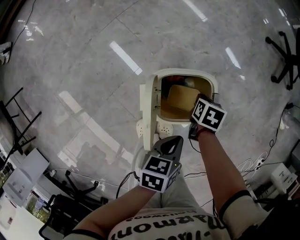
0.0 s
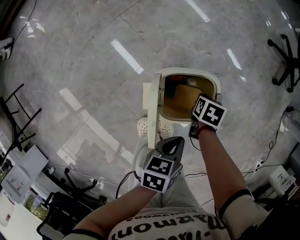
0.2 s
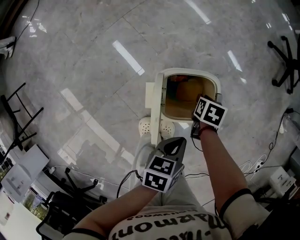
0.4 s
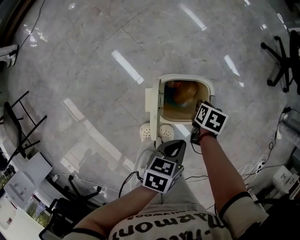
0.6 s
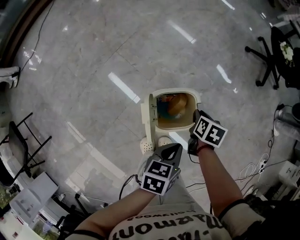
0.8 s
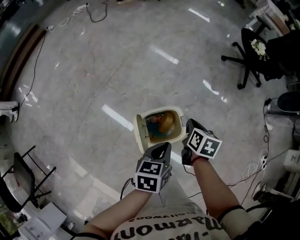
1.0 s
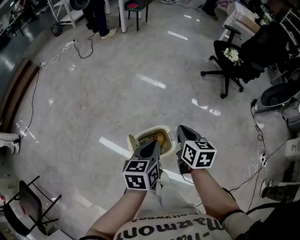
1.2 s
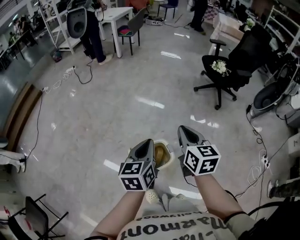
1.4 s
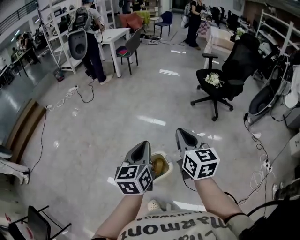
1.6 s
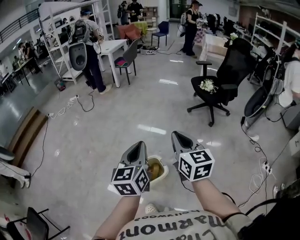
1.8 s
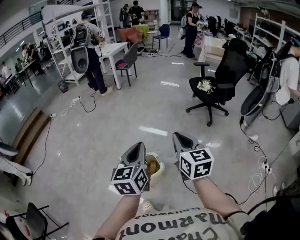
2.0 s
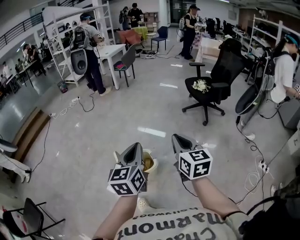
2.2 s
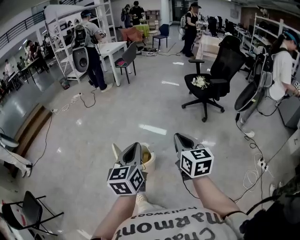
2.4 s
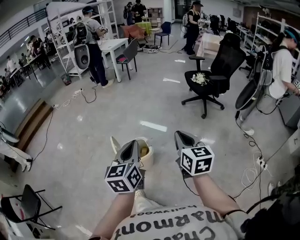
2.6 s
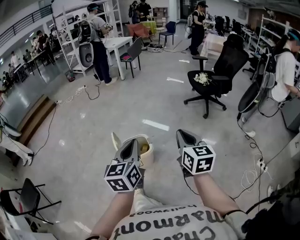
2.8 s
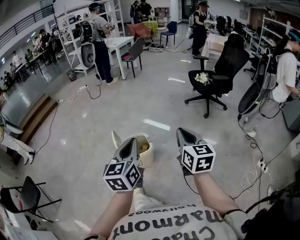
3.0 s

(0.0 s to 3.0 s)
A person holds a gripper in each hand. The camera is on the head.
0.0 s - 1.6 s: Both grippers travel together upward, some 50 cm. The left gripper tilts its fingers roughly 30 degrees upward; the right gripper tilts its fingers approximately 60 degrees upward.
1.6 s - 3.0 s: The grippers both shift backward and to the right by about 30 cm.

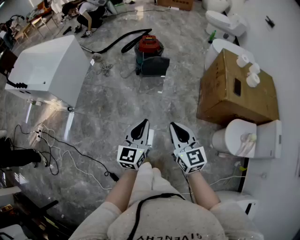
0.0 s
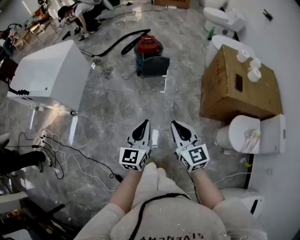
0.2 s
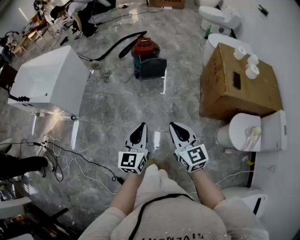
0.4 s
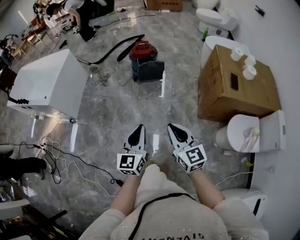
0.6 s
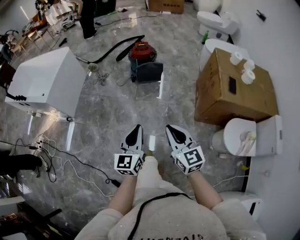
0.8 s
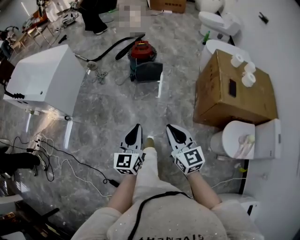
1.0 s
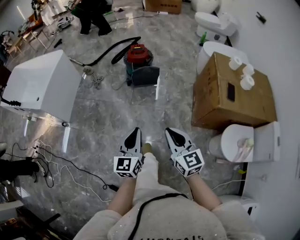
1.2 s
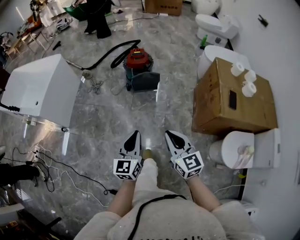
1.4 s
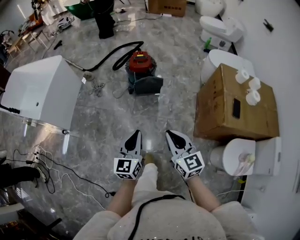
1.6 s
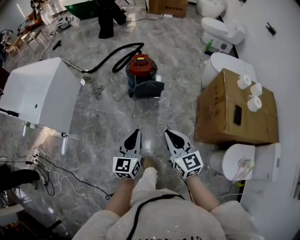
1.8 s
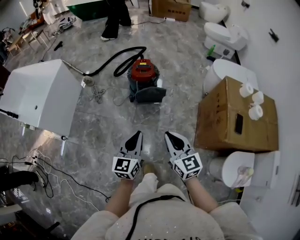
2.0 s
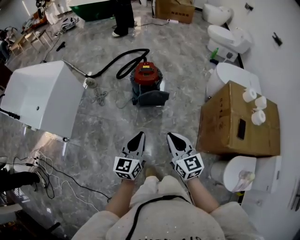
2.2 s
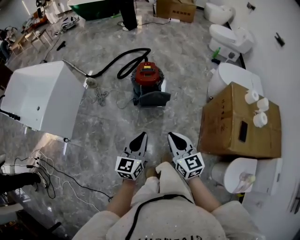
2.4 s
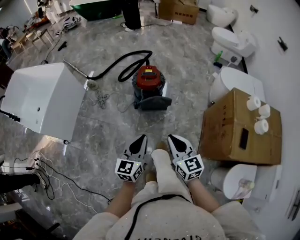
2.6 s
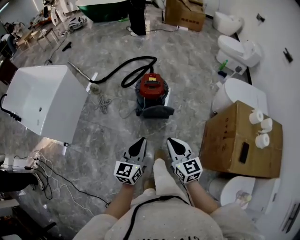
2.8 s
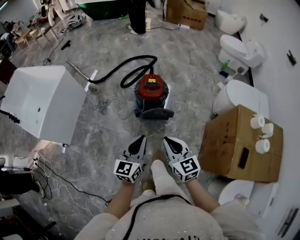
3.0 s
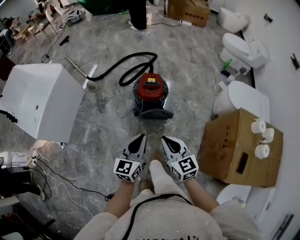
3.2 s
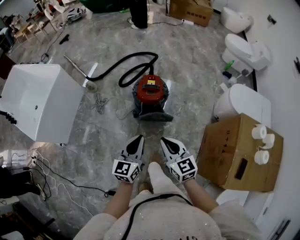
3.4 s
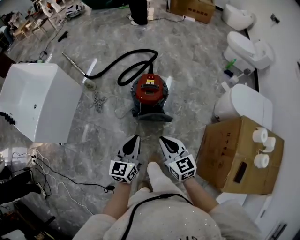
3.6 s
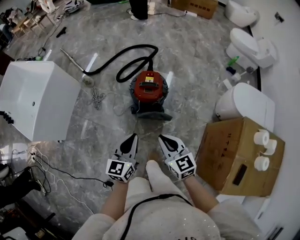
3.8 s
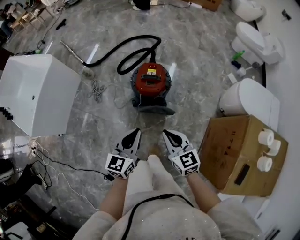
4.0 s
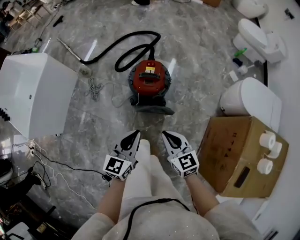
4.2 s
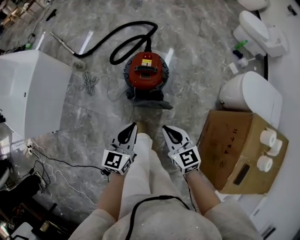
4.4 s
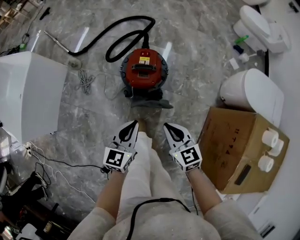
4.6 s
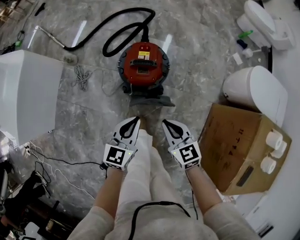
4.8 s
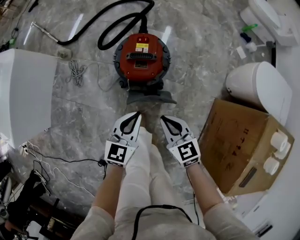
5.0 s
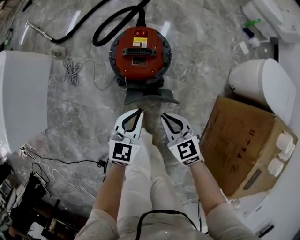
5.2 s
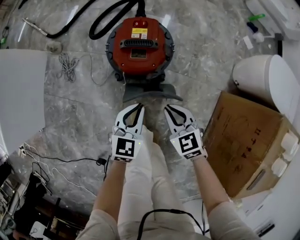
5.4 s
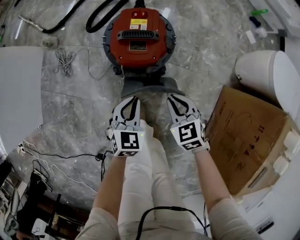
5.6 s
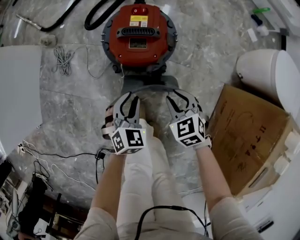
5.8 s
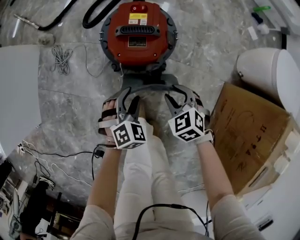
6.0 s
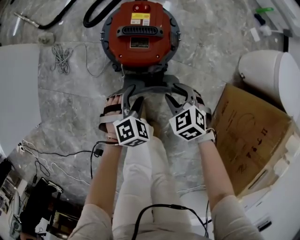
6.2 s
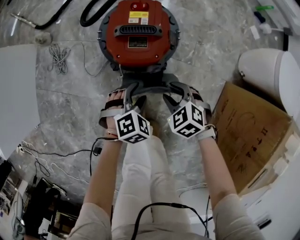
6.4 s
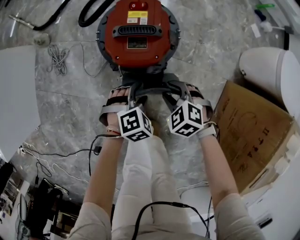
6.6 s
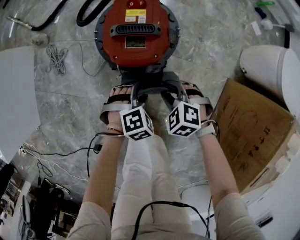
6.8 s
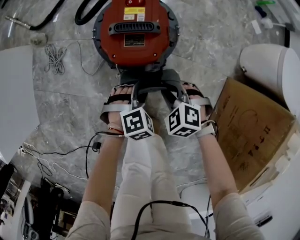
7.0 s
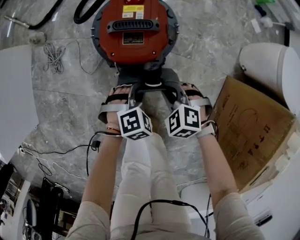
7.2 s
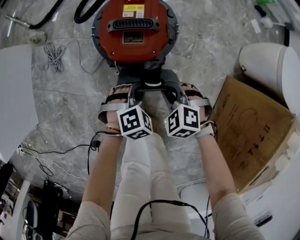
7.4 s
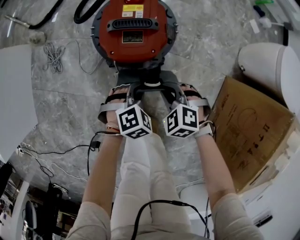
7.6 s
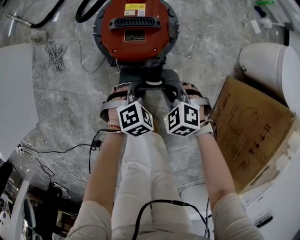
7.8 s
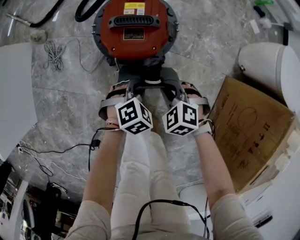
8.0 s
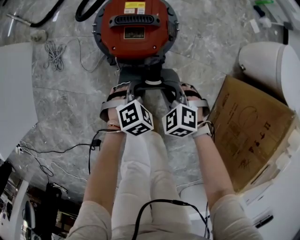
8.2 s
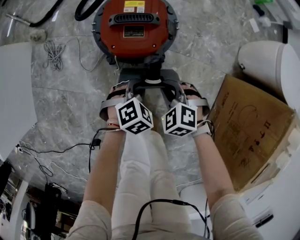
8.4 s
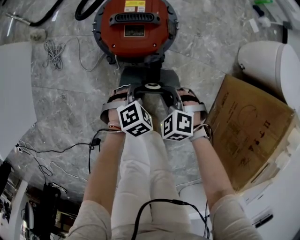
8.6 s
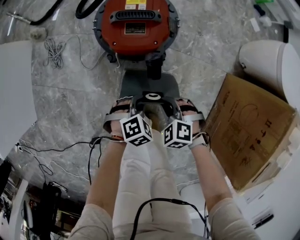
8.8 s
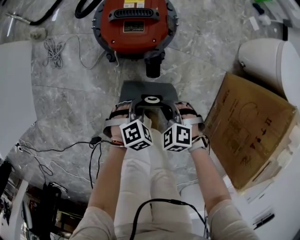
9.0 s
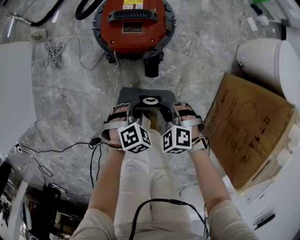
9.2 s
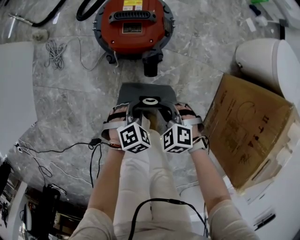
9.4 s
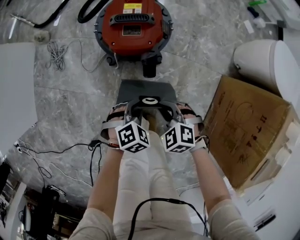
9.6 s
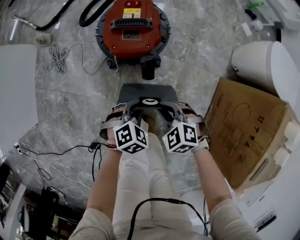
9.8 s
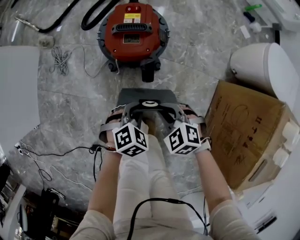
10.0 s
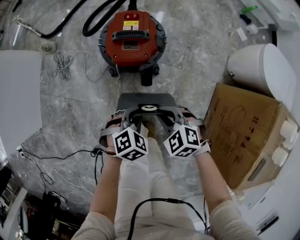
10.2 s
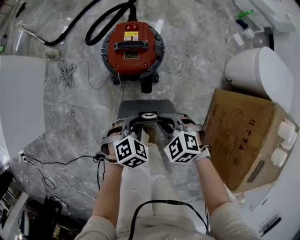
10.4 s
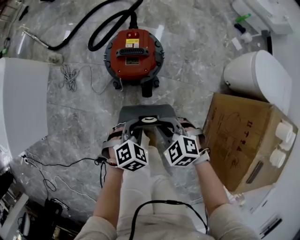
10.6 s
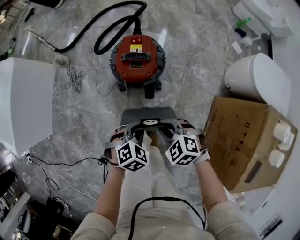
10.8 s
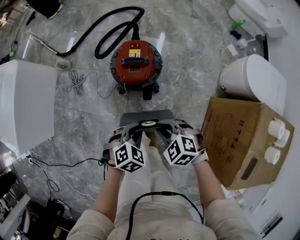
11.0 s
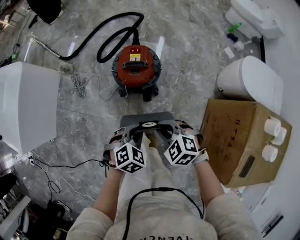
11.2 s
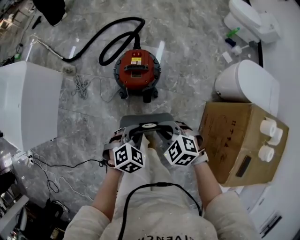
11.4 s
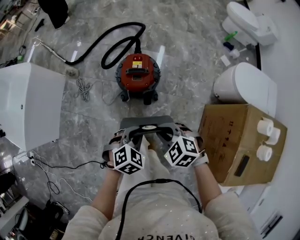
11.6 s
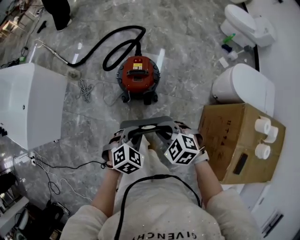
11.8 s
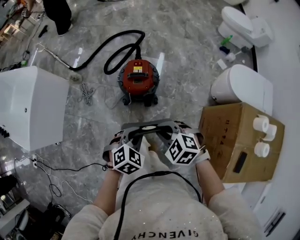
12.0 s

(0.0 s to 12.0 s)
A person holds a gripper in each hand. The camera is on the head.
0.0 s - 1.6 s: The two grippers go approximately 15 cm forward.
1.6 s - 3.0 s: Both grippers move forward, some 25 cm.
3.0 s - 4.4 s: The left gripper is displaced forward and downward by about 20 cm; the right gripper is displaced forward, downward and to the right by some 20 cm.
4.4 s - 6.0 s: Both grippers travel together downward, about 30 cm. The left gripper tips its fingers downward by some 40 degrees, and opens, while the right gripper angles its fingers downward, by some 30 degrees, and opens its fingers.
6.0 s - 7.6 s: The left gripper travels downward by some 5 cm, and closes up; the right gripper closes up.
7.6 s - 9.0 s: The grippers both shift backward by roughly 10 cm.
9.0 s - 10.4 s: The grippers both shift upward by about 15 cm.
10.4 s - 12.0 s: Both grippers travel together upward, some 25 cm.

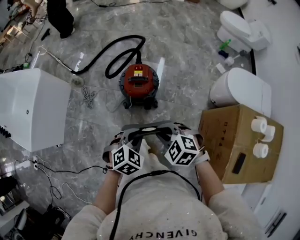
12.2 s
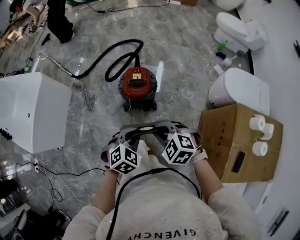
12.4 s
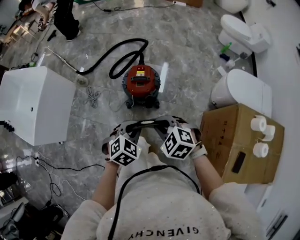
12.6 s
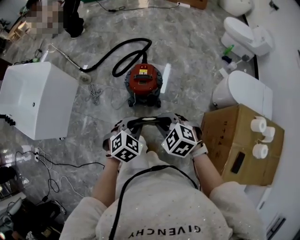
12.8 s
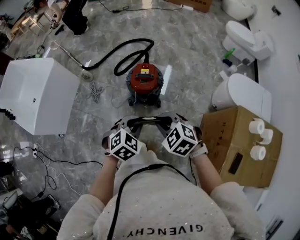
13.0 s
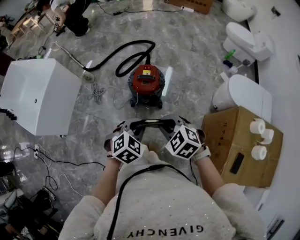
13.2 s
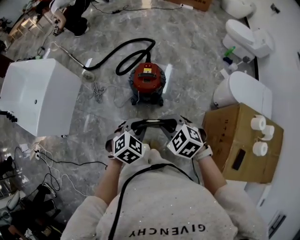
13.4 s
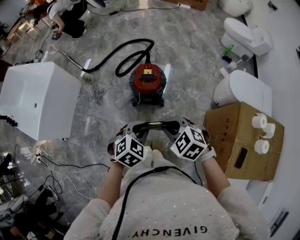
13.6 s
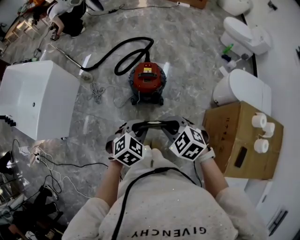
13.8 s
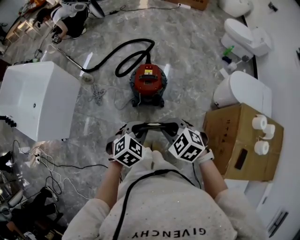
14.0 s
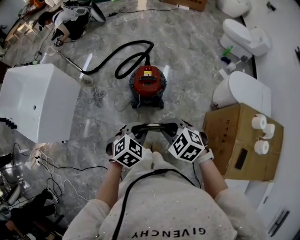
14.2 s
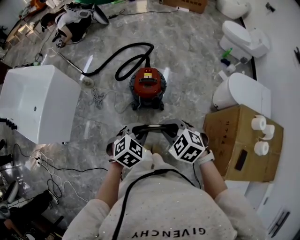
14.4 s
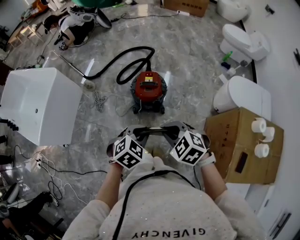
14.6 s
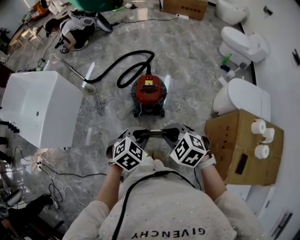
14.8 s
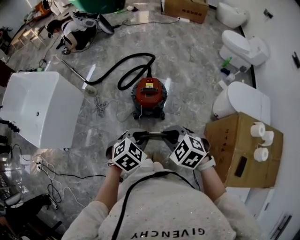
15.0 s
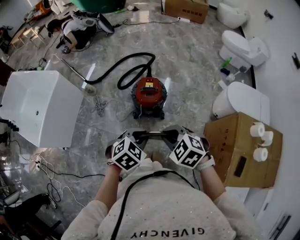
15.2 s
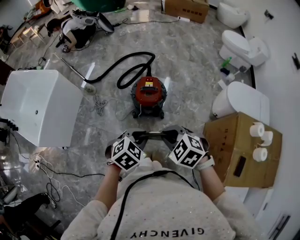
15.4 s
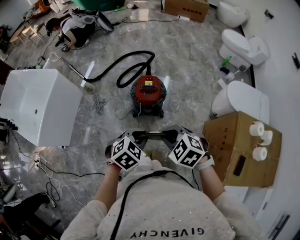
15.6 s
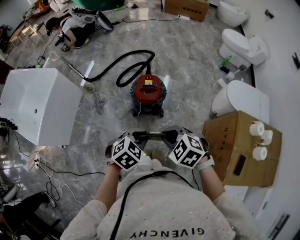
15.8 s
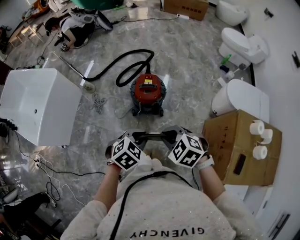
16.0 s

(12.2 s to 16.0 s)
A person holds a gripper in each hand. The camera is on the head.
12.2 s - 13.4 s: The two grippers go roughly 5 cm upward.
13.4 s - 16.0 s: The grippers move only a little.

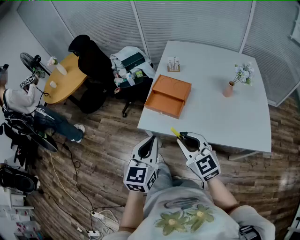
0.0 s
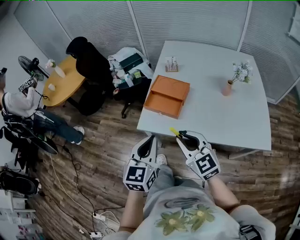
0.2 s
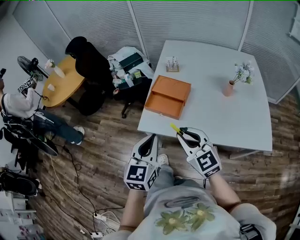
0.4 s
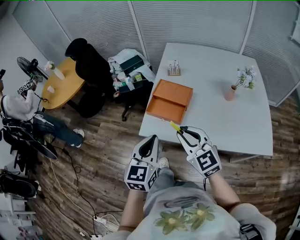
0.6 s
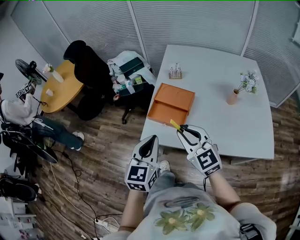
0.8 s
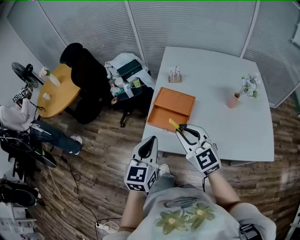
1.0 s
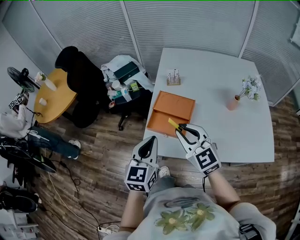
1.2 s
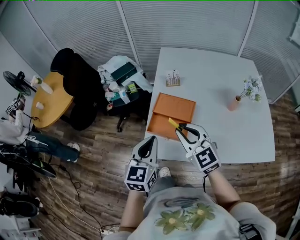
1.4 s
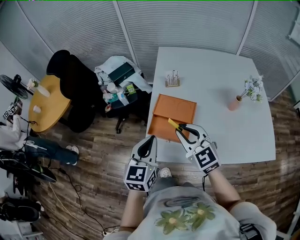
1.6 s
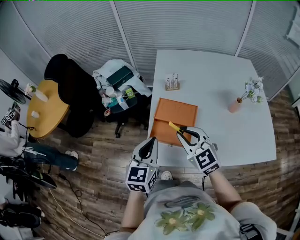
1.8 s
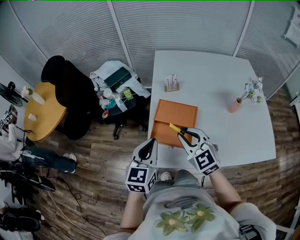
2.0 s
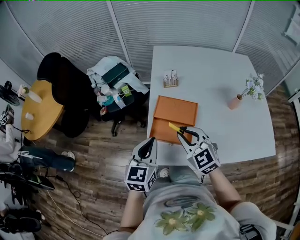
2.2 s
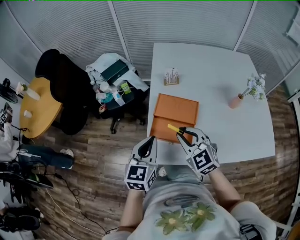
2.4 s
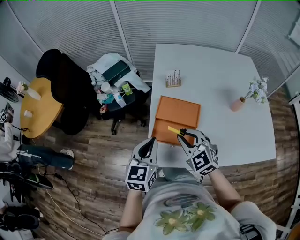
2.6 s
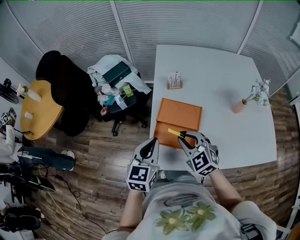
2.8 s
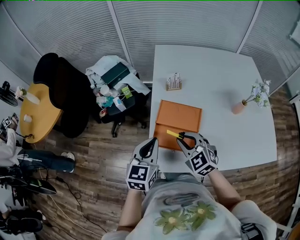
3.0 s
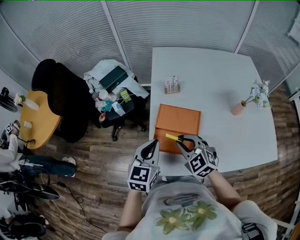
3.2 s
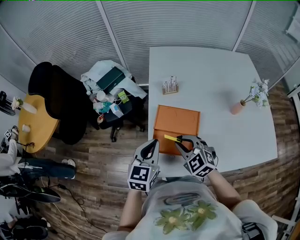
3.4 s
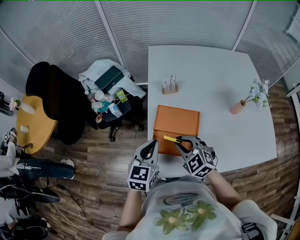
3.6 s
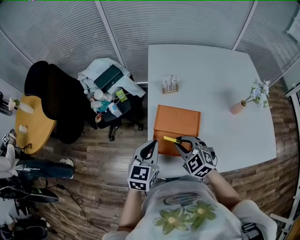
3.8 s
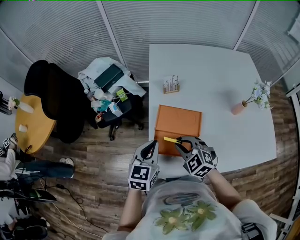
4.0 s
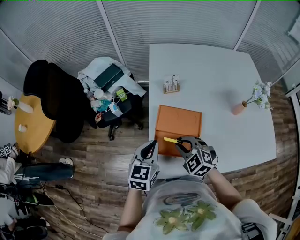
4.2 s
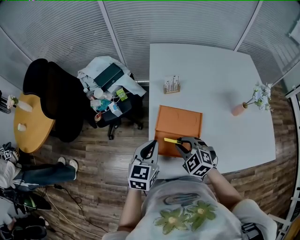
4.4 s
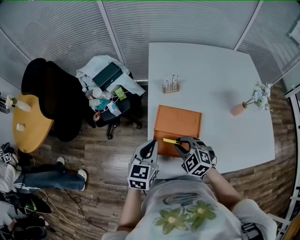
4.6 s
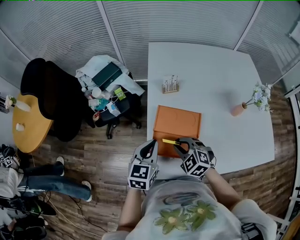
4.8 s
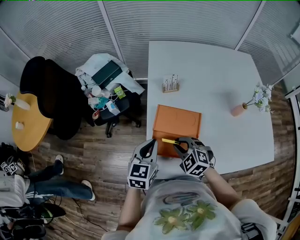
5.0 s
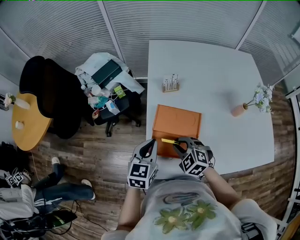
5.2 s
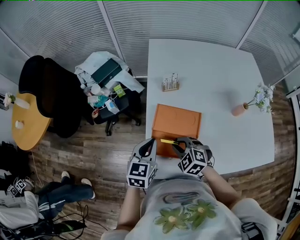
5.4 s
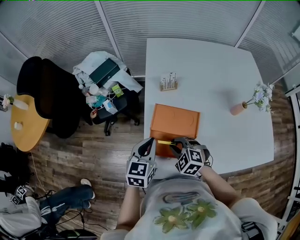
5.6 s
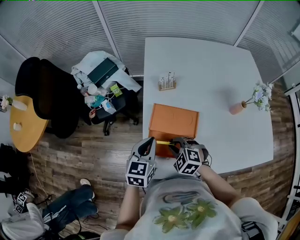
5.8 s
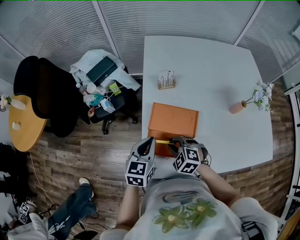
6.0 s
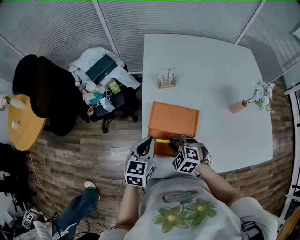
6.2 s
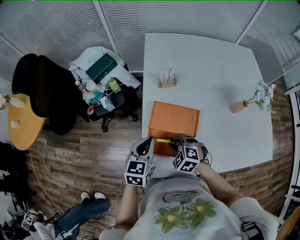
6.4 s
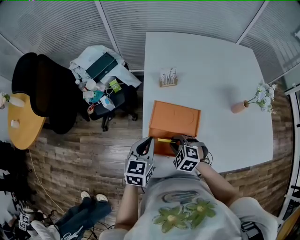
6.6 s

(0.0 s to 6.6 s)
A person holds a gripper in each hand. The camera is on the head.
0.0 s - 1.6 s: Both grippers move forward, some 25 cm.
1.6 s - 3.2 s: The left gripper travels forward and downward by about 10 cm, while the right gripper goes about 15 cm downward and forward, and swivels some 20 degrees.
3.2 s - 5.0 s: The left gripper ends up about 5 cm from where it was; the right gripper is displaced downward by roughly 5 cm.
5.0 s - 6.6 s: The right gripper goes some 5 cm downward.
